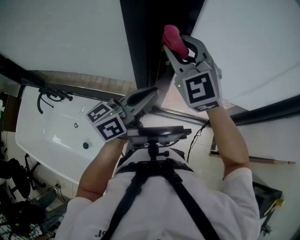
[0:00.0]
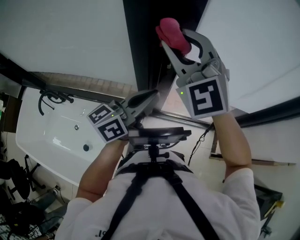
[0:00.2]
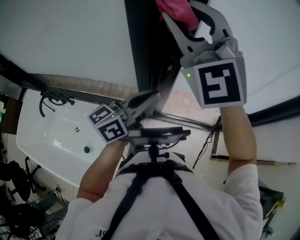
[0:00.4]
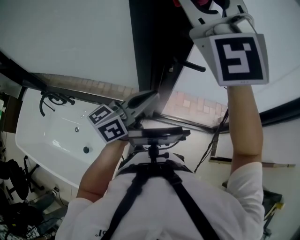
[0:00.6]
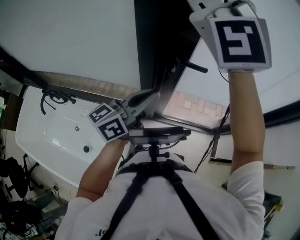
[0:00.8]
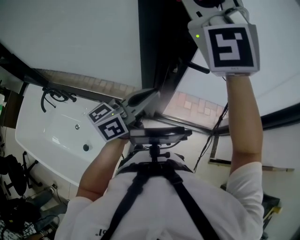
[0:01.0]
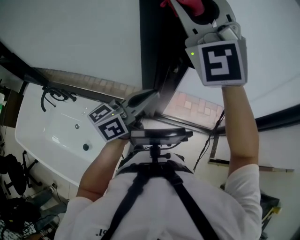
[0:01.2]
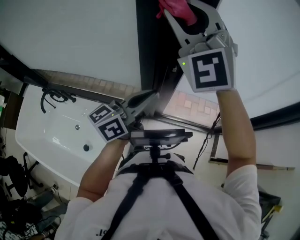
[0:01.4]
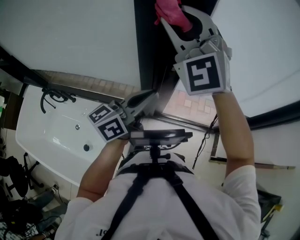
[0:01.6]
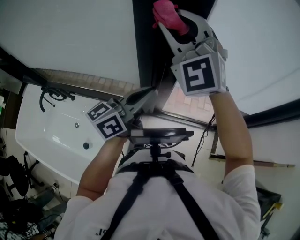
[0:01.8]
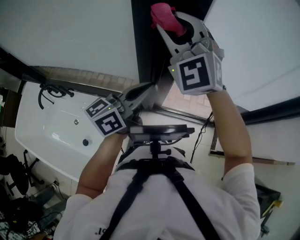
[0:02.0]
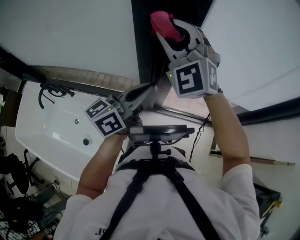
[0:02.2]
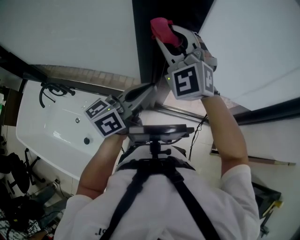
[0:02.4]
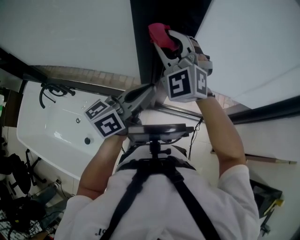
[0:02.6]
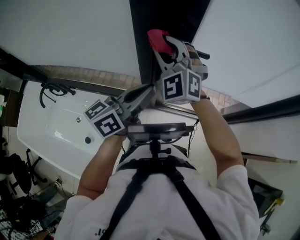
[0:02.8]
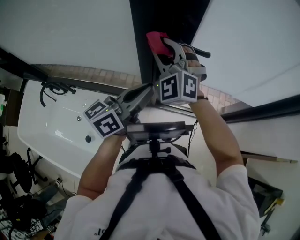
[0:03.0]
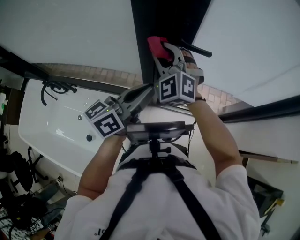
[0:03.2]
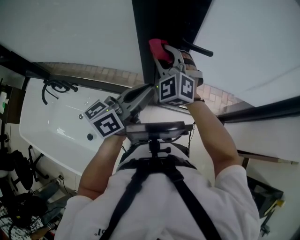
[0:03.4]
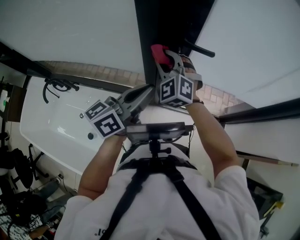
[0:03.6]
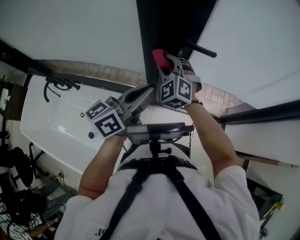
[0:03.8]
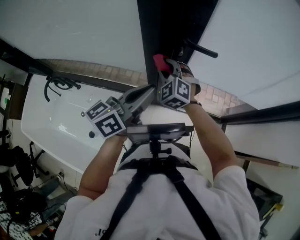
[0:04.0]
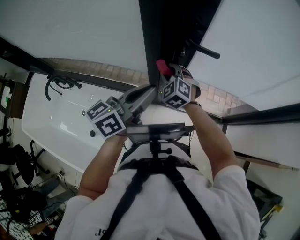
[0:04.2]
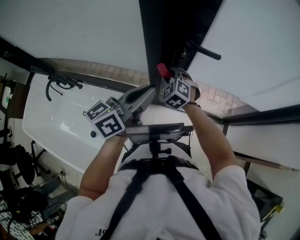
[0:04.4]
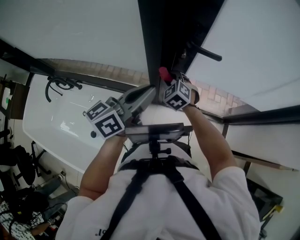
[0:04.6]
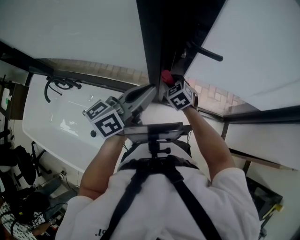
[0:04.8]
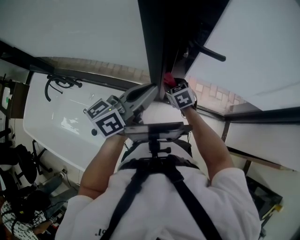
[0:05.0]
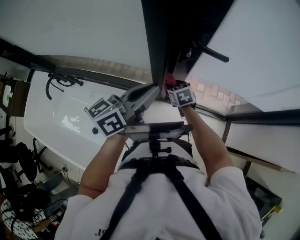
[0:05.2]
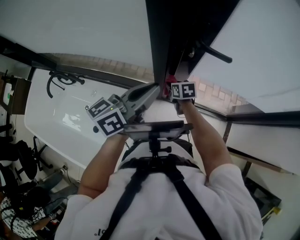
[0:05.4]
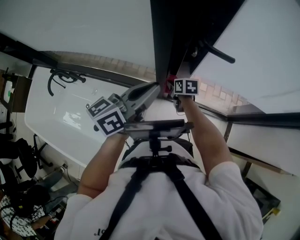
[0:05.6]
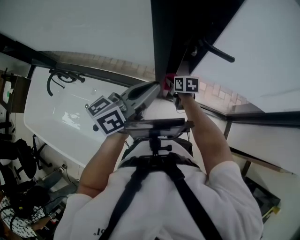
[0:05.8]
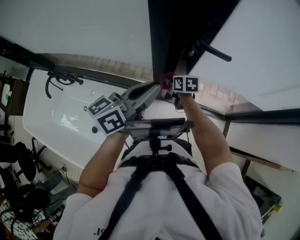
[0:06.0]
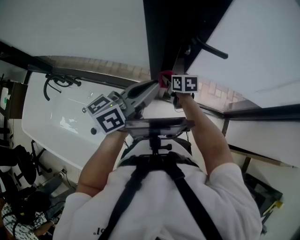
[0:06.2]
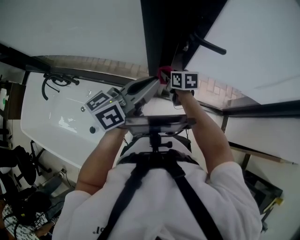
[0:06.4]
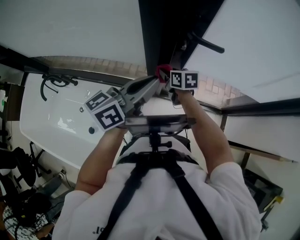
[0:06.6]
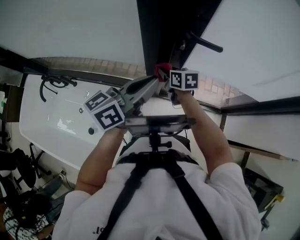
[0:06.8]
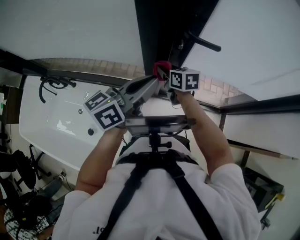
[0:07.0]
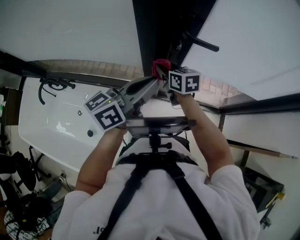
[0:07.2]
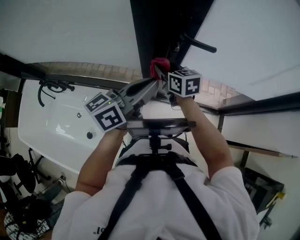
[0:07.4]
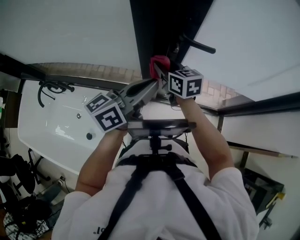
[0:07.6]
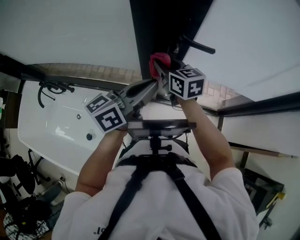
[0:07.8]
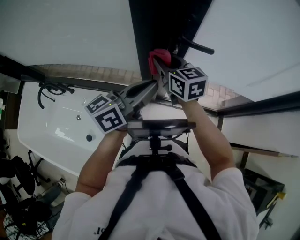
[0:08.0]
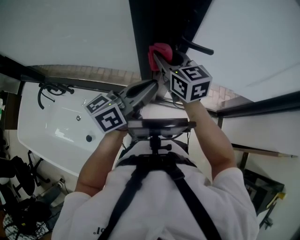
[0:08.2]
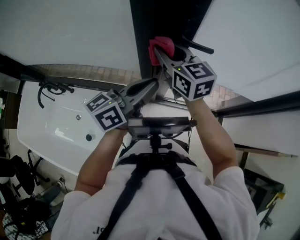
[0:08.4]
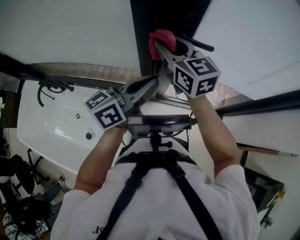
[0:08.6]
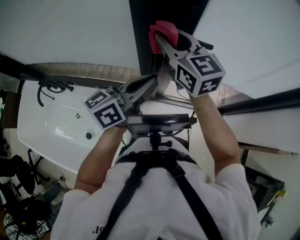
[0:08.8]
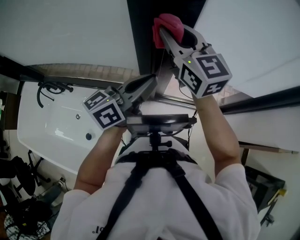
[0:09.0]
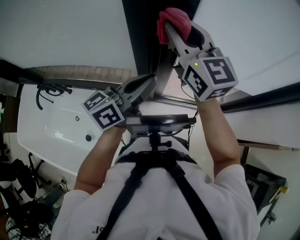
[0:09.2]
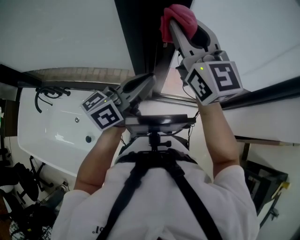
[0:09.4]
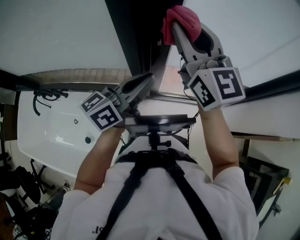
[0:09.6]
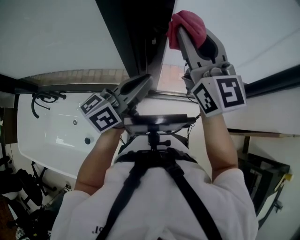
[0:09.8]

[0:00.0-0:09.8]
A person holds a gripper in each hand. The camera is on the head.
0:00.0 to 0:01.4: The right gripper is displaced upward by about 15 cm, and turns by about 20 degrees.
0:01.4 to 0:02.8: The right gripper travels downward by some 20 cm.
0:02.8 to 0:04.2: The right gripper heads downward, covering approximately 20 cm, and turns by roughly 30 degrees.
0:04.2 to 0:05.6: The right gripper moves downward, some 15 cm, and rolls clockwise, seen from behind, by roughly 70 degrees.
0:05.6 to 0:07.0: The right gripper goes about 15 cm upward.
0:07.0 to 0:08.4: The right gripper moves upward, approximately 20 cm, and changes its angle by approximately 30 degrees.
0:08.4 to 0:09.8: The right gripper travels upward and to the right by some 15 cm, and swivels about 30 degrees.

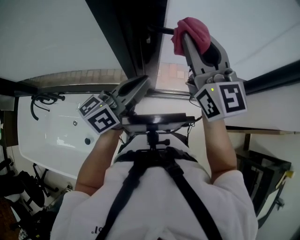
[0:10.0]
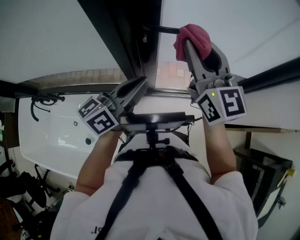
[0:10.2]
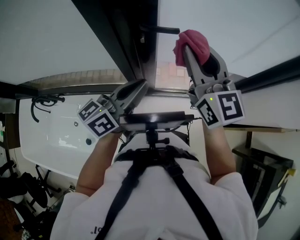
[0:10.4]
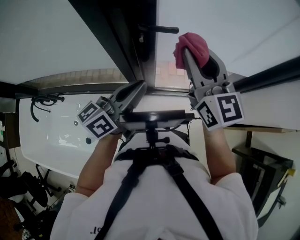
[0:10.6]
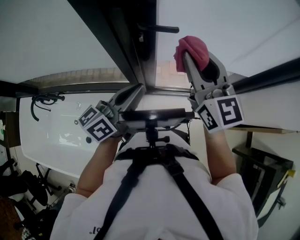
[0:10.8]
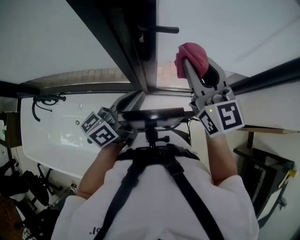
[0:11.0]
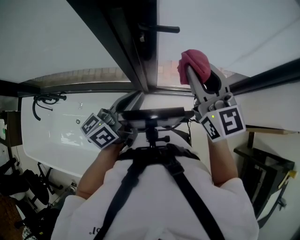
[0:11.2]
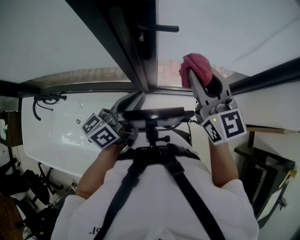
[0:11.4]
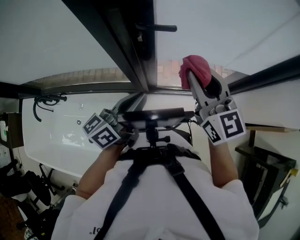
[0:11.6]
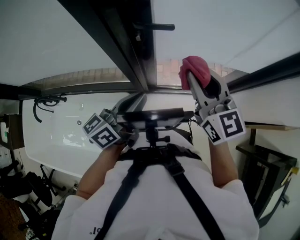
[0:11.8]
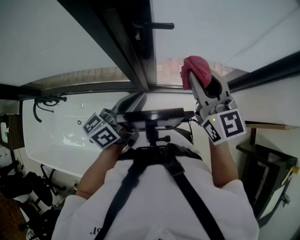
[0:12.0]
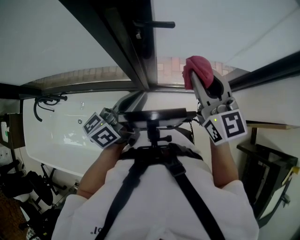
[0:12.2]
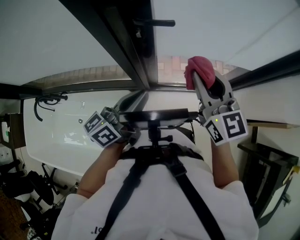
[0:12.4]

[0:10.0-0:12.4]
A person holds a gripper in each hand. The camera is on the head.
0:10.0 to 0:11.2: The right gripper goes roughly 10 cm downward and to the right; the left gripper ends up approximately 5 cm from where it was.
0:11.2 to 0:12.4: The grippers make only small movements.

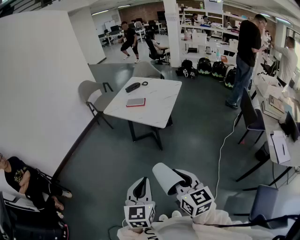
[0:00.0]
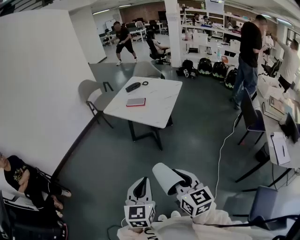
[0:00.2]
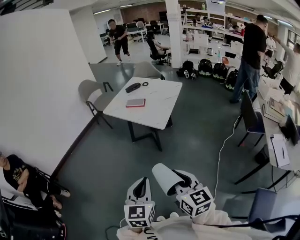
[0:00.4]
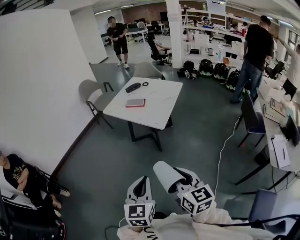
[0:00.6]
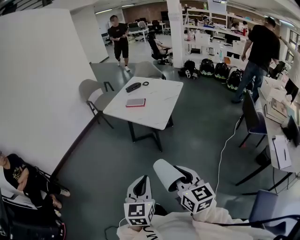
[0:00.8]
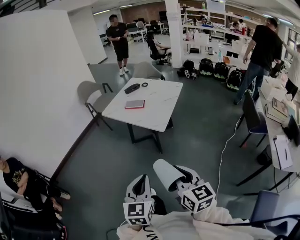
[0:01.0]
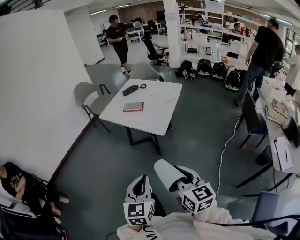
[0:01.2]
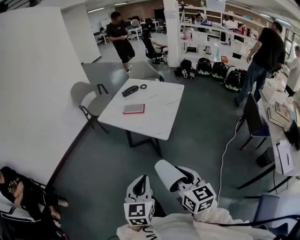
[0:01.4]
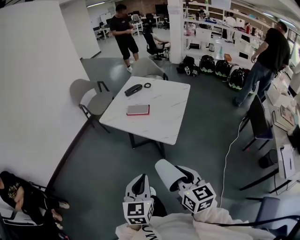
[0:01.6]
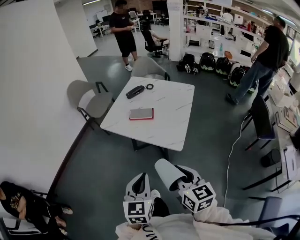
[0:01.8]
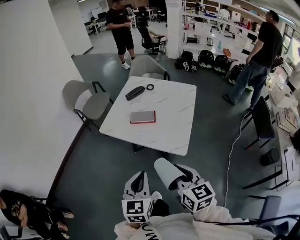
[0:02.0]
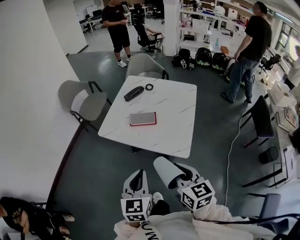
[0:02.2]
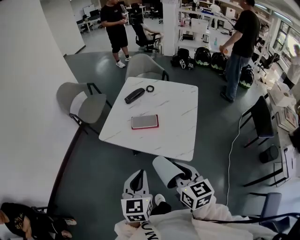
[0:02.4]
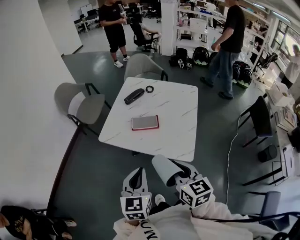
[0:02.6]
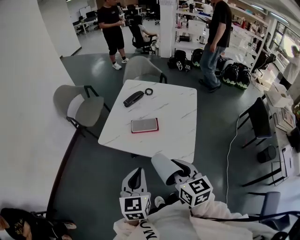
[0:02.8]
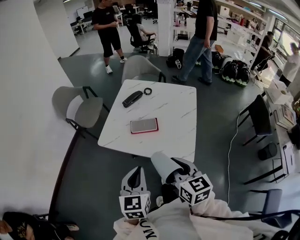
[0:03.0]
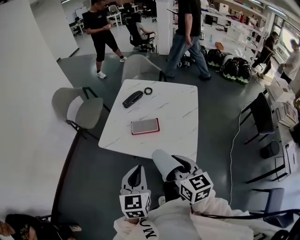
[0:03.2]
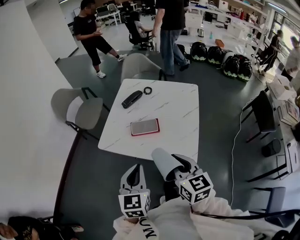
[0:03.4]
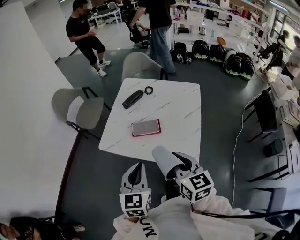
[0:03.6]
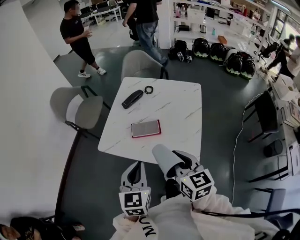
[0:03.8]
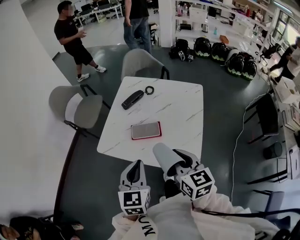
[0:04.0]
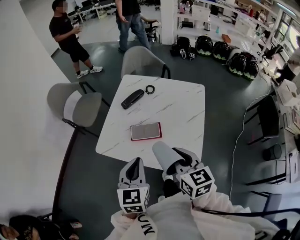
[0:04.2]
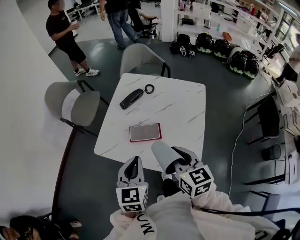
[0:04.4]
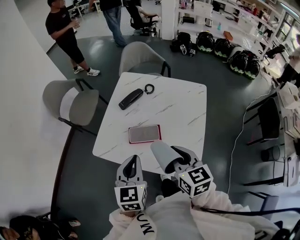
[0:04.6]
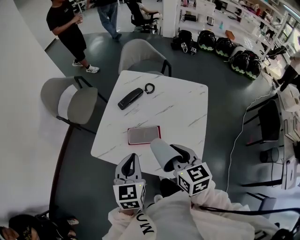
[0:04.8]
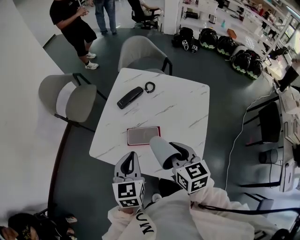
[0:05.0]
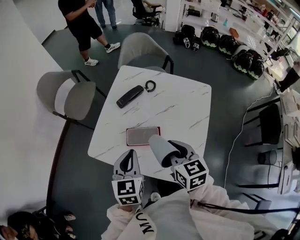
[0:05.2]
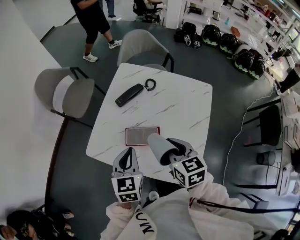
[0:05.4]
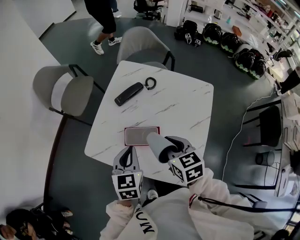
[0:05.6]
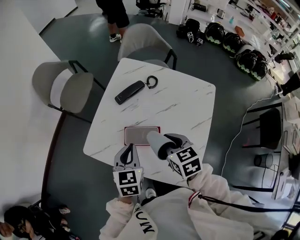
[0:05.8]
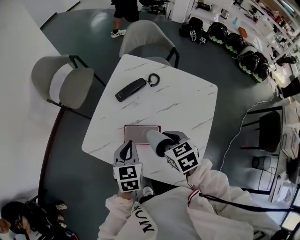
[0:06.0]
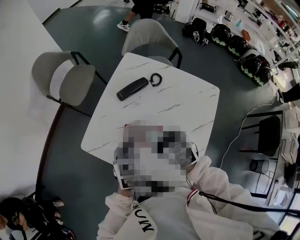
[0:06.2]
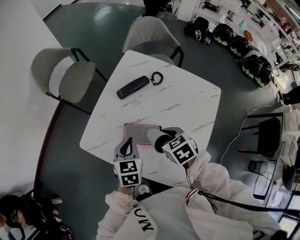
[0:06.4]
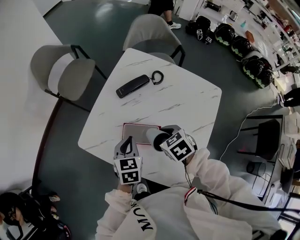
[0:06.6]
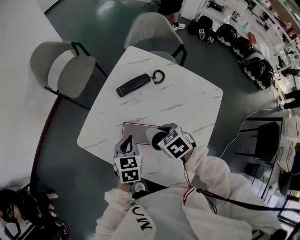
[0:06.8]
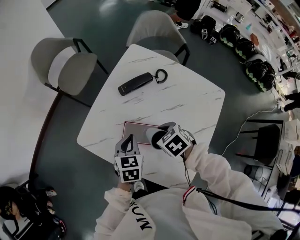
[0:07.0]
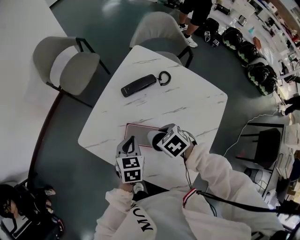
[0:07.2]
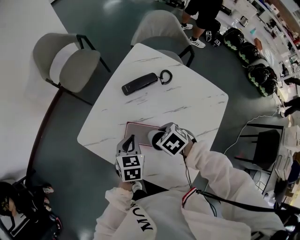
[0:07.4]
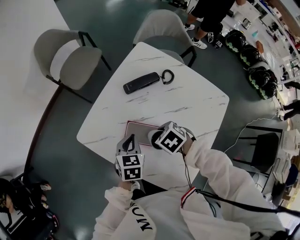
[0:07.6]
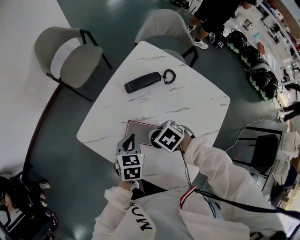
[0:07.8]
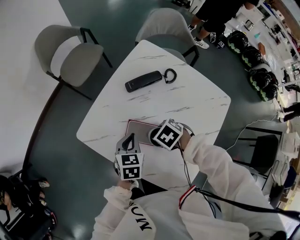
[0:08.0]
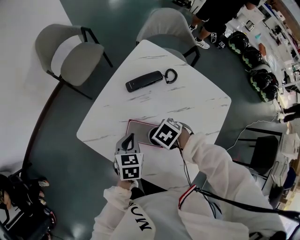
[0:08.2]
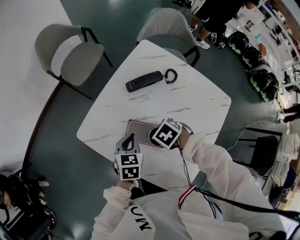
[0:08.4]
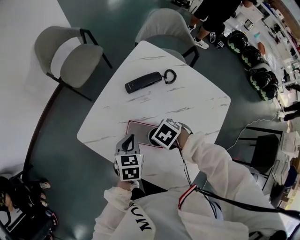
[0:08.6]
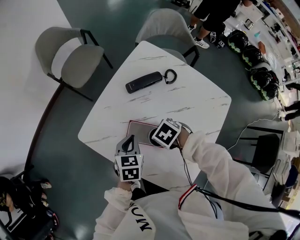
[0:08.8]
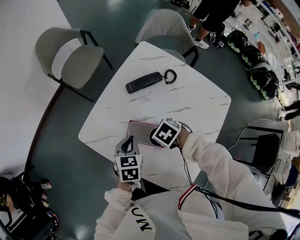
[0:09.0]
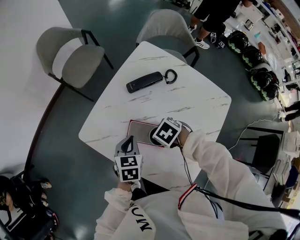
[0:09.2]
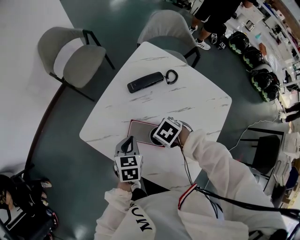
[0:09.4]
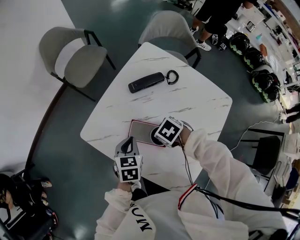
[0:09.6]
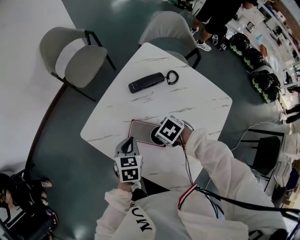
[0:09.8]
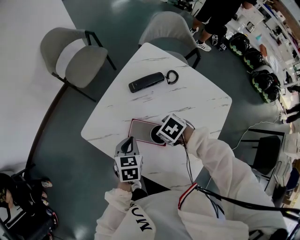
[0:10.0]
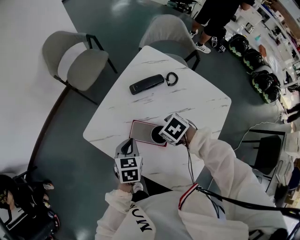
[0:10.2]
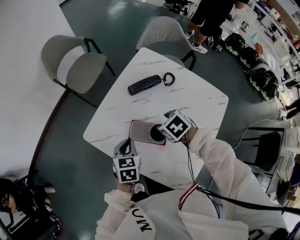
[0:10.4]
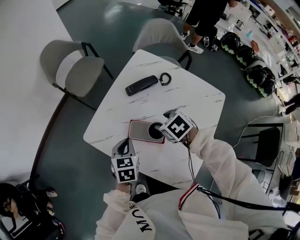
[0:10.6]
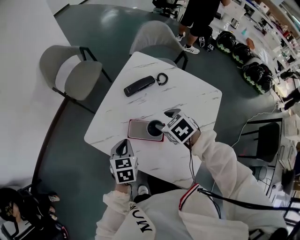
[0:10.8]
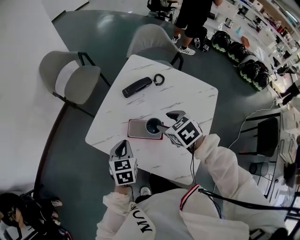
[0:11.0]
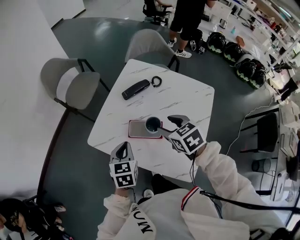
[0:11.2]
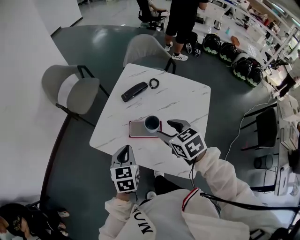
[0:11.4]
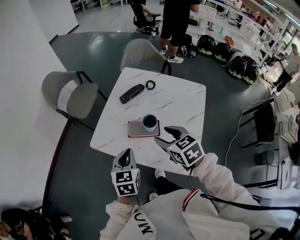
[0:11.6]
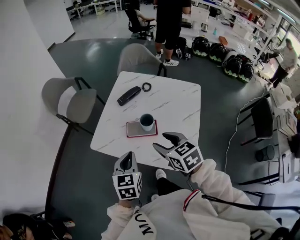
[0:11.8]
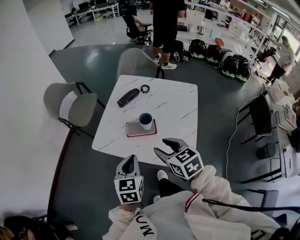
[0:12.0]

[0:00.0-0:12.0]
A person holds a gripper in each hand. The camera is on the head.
0:00.0 to 0:01.6: Both grippers move forward, about 25 cm.
0:01.6 to 0:03.0: Both grippers move forward and to the left, roughly 30 cm.
0:03.0 to 0:04.4: The two grippers go approximately 15 cm forward.
0:04.4 to 0:06.0: The grippers both shift forward and downward by approximately 20 cm. The right gripper rotates about 30 degrees.
0:06.0 to 0:07.6: Both grippers travel together downward, about 10 cm. The right gripper swivels approximately 40 degrees.
0:07.6 to 0:09.0: The grippers make only small movements.
0:09.0 to 0:10.4: The right gripper moves upward, some 5 cm, and opens its fingers.
0:10.4 to 0:12.0: The grippers both shift backward and upward by some 25 cm. The left gripper swivels some 20 degrees. Meanwhile the right gripper tips its fingers upward by approximately 40 degrees.
